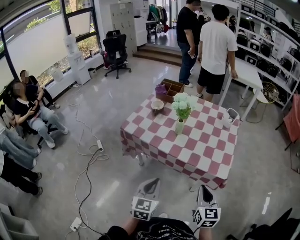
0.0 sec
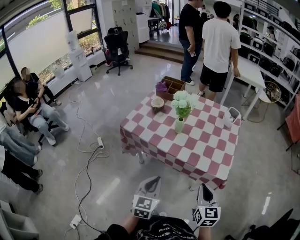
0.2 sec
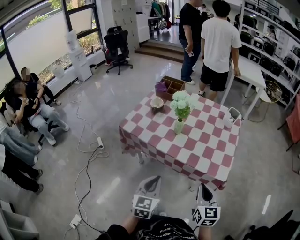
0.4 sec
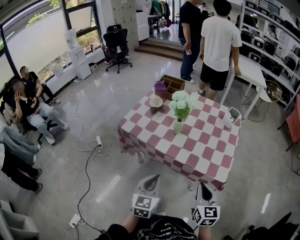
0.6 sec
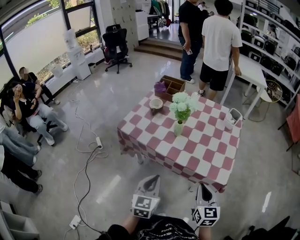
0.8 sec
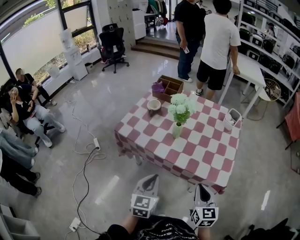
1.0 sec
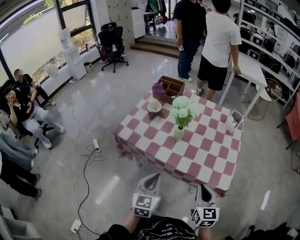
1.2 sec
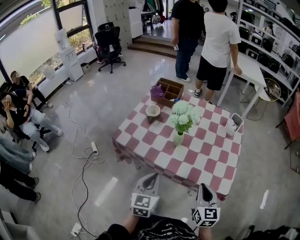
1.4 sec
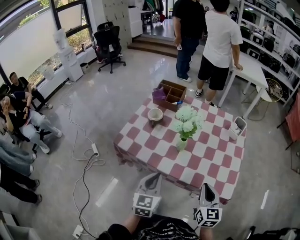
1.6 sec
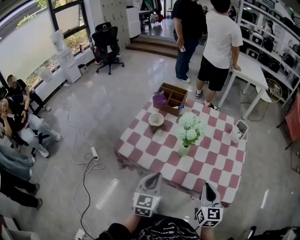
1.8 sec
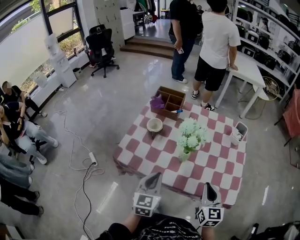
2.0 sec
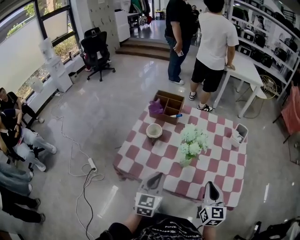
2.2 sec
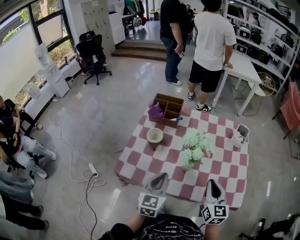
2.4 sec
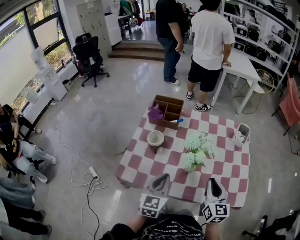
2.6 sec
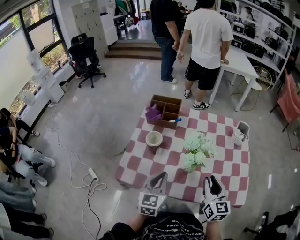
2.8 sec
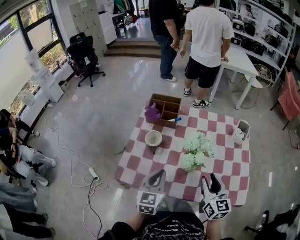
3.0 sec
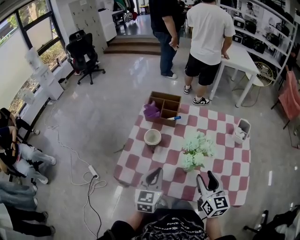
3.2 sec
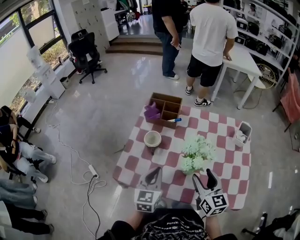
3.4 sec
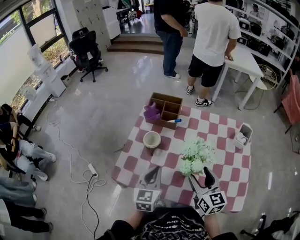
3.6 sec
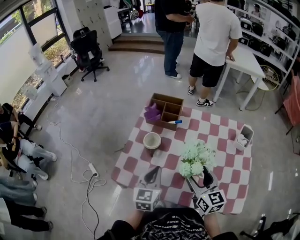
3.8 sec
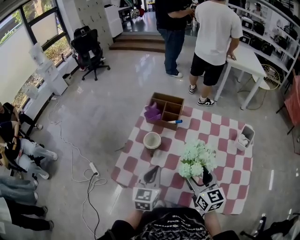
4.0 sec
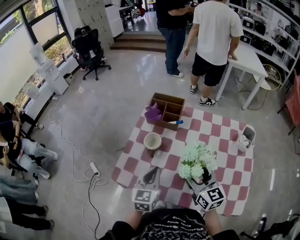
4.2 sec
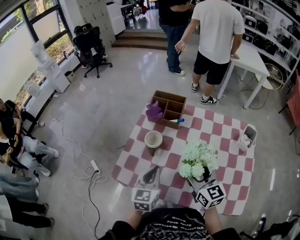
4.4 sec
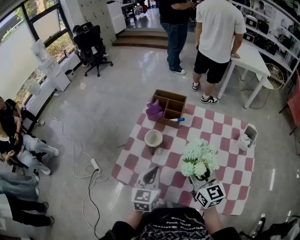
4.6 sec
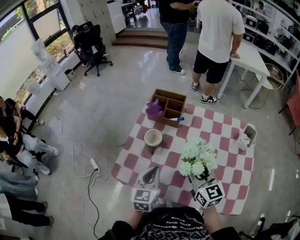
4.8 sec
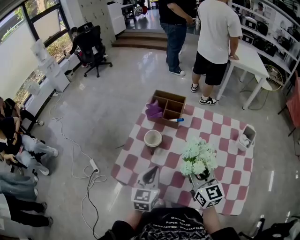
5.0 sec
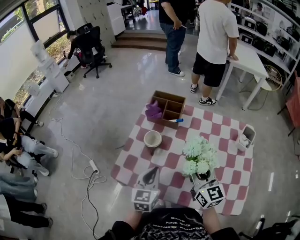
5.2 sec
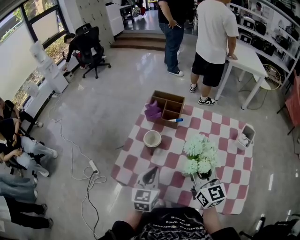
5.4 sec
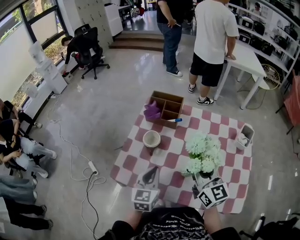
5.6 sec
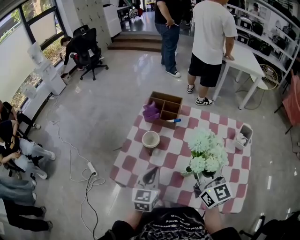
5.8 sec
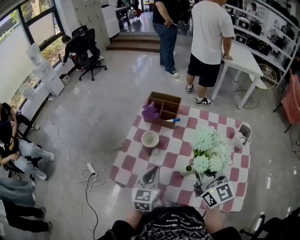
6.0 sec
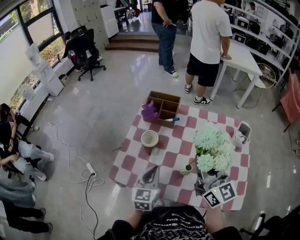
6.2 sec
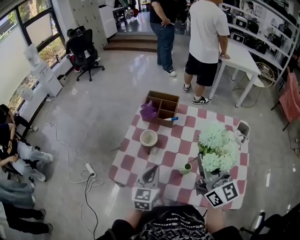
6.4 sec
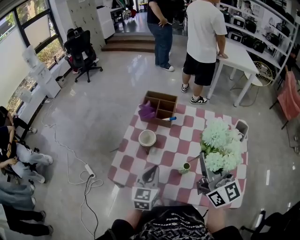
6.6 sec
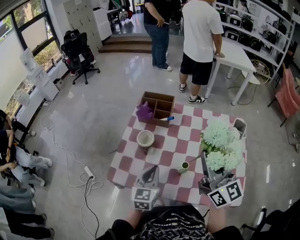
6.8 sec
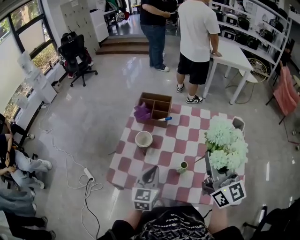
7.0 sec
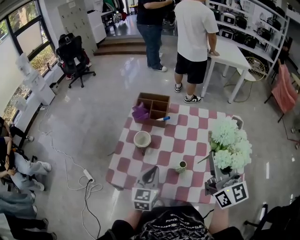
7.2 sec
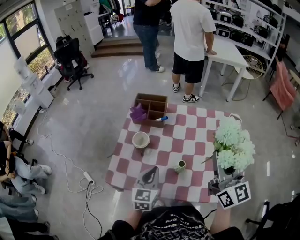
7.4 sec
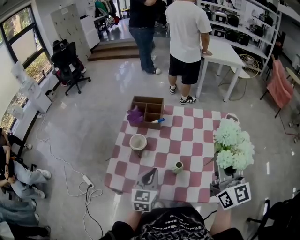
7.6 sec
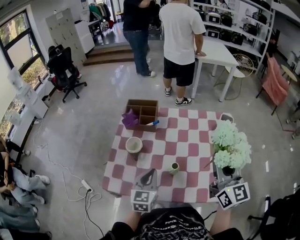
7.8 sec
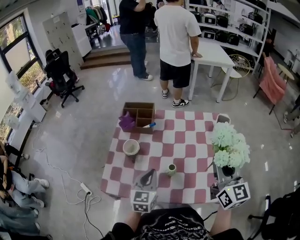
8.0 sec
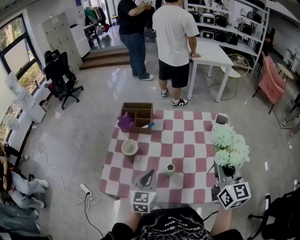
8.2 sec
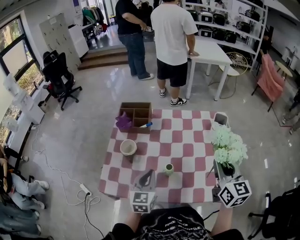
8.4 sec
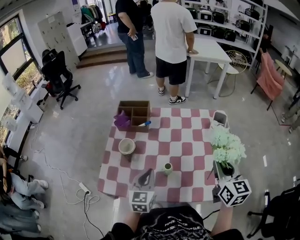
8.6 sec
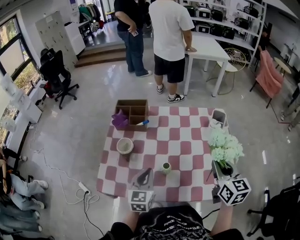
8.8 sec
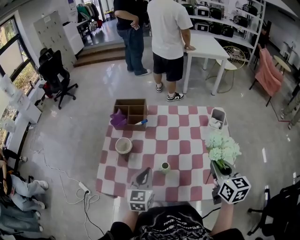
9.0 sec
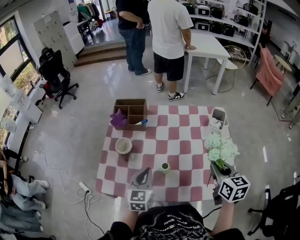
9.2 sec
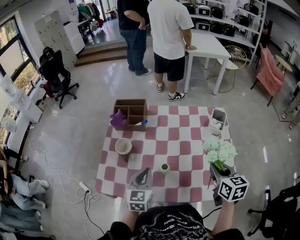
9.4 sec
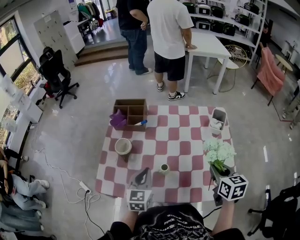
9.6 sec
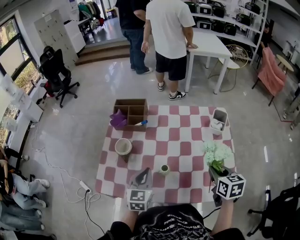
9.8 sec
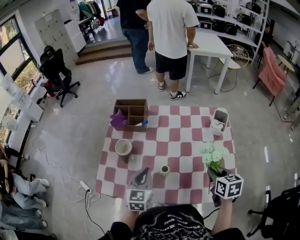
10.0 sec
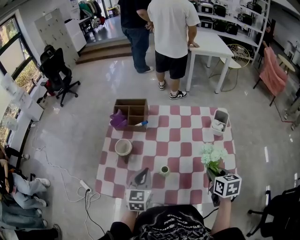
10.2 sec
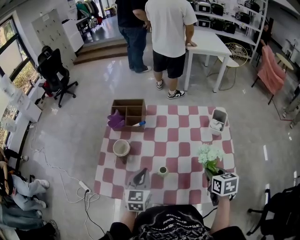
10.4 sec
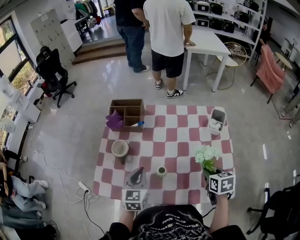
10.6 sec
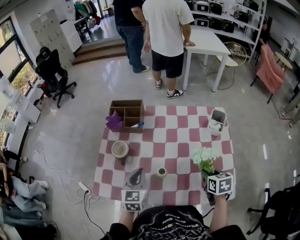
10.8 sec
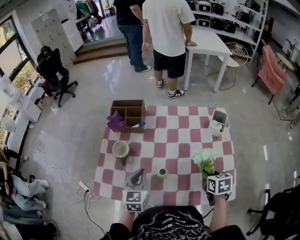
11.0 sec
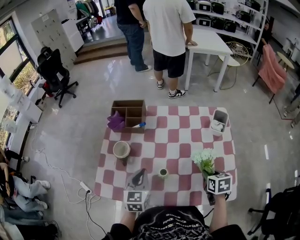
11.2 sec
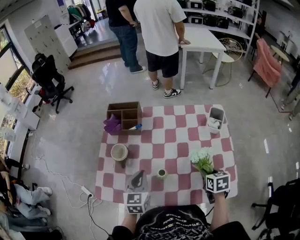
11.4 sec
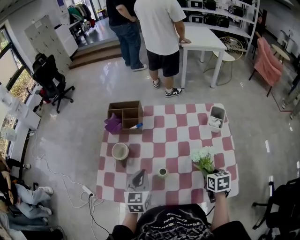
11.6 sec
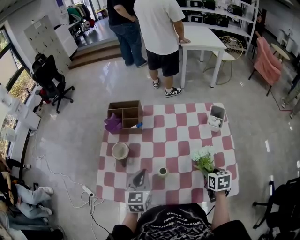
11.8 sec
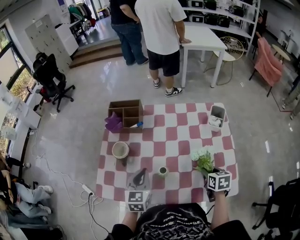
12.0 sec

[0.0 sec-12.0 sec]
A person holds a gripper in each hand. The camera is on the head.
0.0 sec to 1.6 sec: Both grippers move forward, approximately 15 cm.
1.6 sec to 3.0 sec: Both grippers travel together forward and to the left, roughly 15 cm. The right gripper opens up.
3.0 sec to 4.4 sec: The right gripper travels forward and to the left by some 10 cm, turns by about 20 degrees, and opens its fingers.
4.4 sec to 6.0 sec: The right gripper heads upward, covering some 10 cm, and closes up.
6.0 sec to 7.6 sec: The right gripper goes about 10 cm to the right.
7.6 sec to 9.0 sec: The right gripper moves downward and to the right, approximately 15 cm, and rotates roughly 30 degrees.
9.0 sec to 10.4 sec: The right gripper heads downward, covering about 10 cm, and turns by roughly 20 degrees.
10.4 sec to 12.0 sec: The right gripper moves downward, approximately 5 cm.

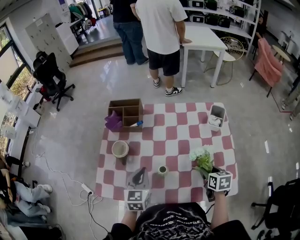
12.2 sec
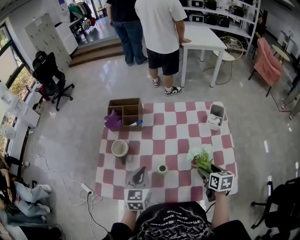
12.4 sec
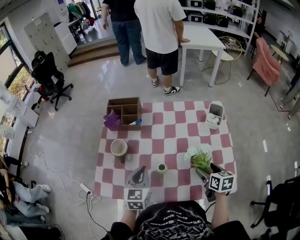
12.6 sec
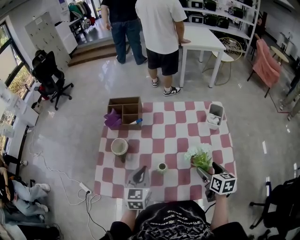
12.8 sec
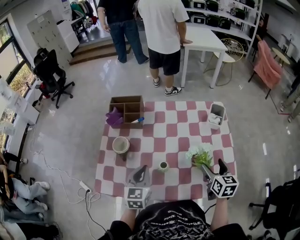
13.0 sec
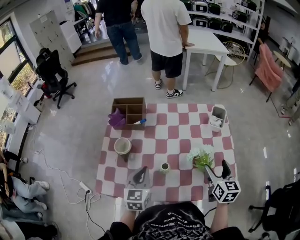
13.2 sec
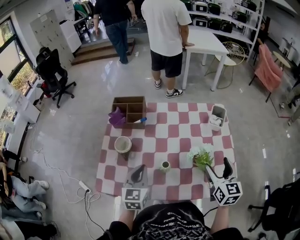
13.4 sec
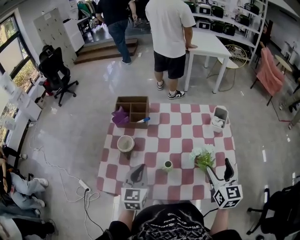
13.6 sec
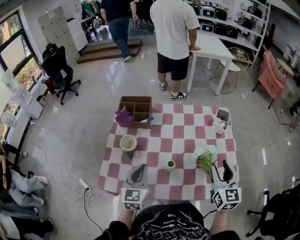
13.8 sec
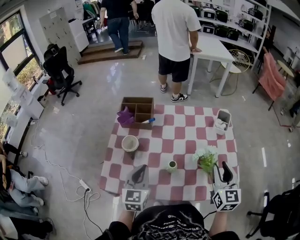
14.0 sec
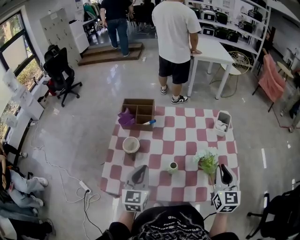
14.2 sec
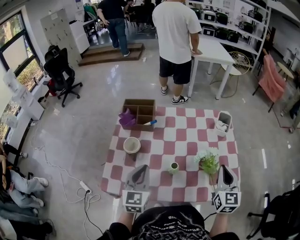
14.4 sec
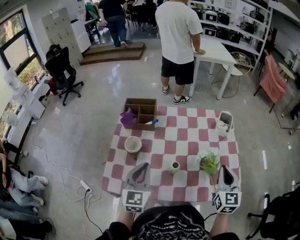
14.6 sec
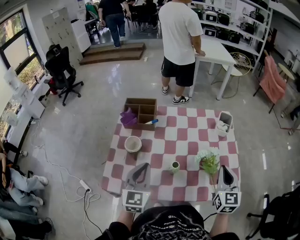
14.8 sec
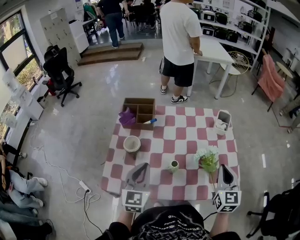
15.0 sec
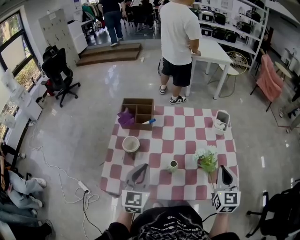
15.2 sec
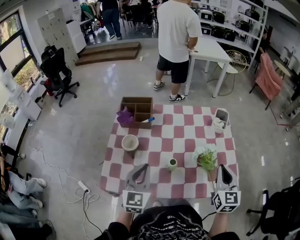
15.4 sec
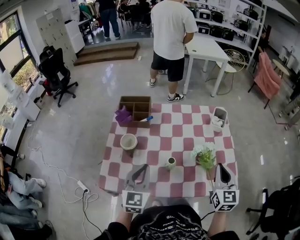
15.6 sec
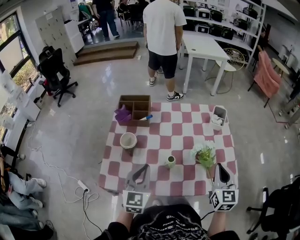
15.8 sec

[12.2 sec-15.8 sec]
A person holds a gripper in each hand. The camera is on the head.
12.2 sec to 14.0 sec: The left gripper ends up some 5 cm from where it was; the right gripper is displaced upward by some 15 cm, angles its fingers upward, by approximately 30 degrees, and opens and closes again.
14.0 sec to 15.8 sec: The right gripper closes.

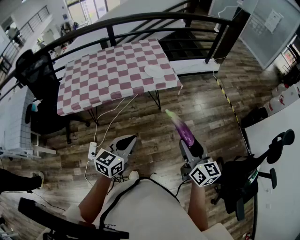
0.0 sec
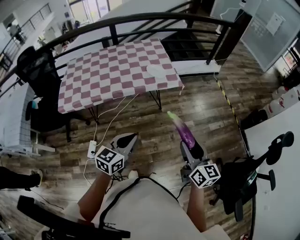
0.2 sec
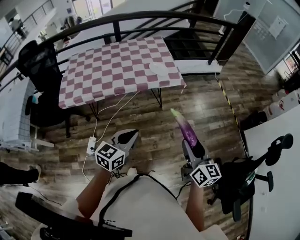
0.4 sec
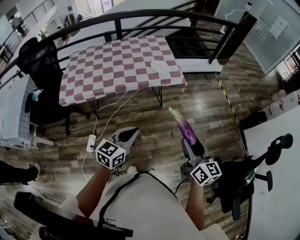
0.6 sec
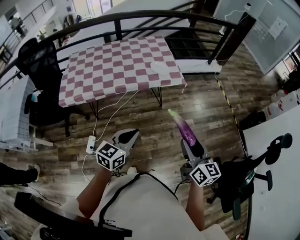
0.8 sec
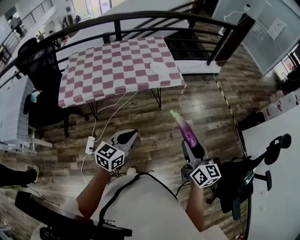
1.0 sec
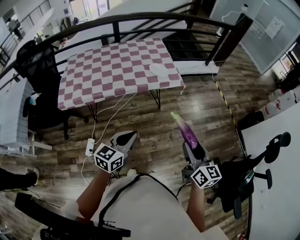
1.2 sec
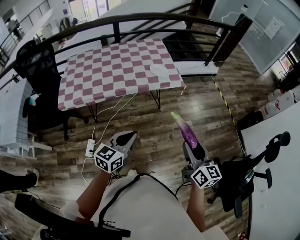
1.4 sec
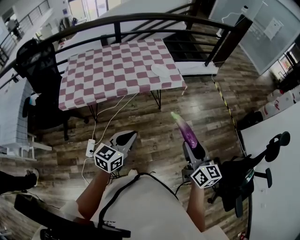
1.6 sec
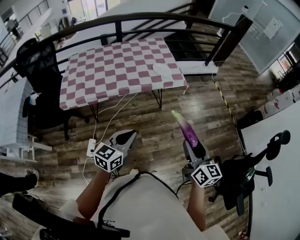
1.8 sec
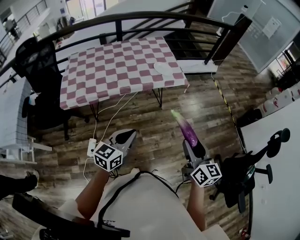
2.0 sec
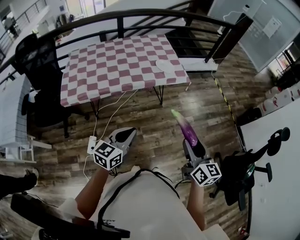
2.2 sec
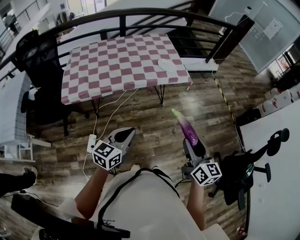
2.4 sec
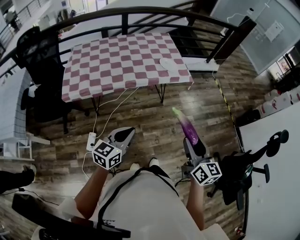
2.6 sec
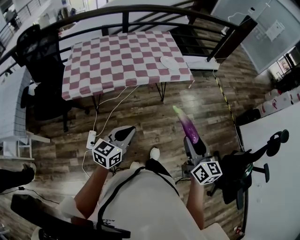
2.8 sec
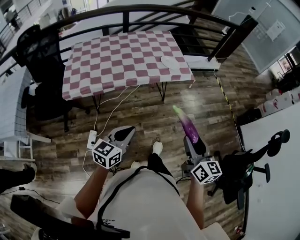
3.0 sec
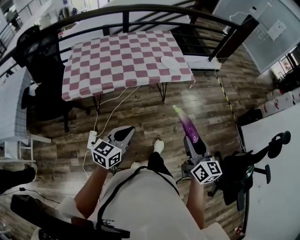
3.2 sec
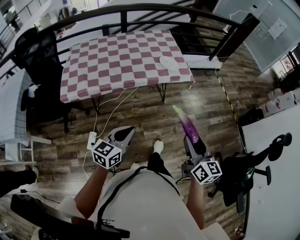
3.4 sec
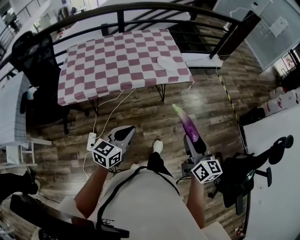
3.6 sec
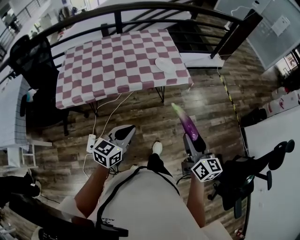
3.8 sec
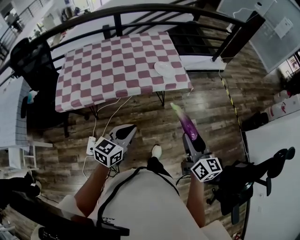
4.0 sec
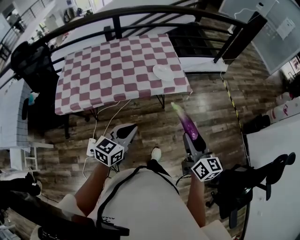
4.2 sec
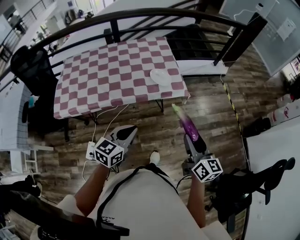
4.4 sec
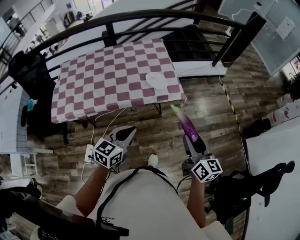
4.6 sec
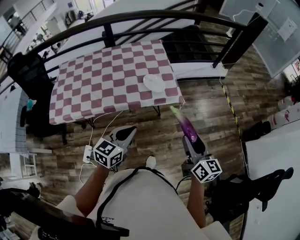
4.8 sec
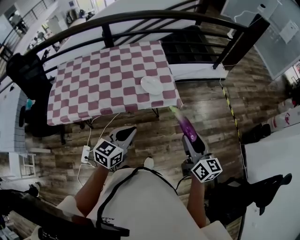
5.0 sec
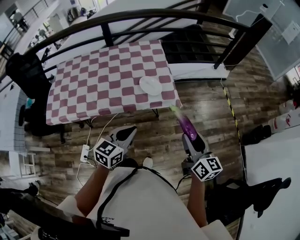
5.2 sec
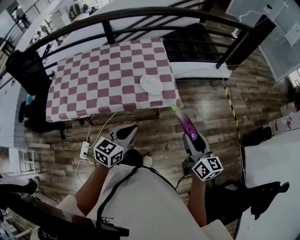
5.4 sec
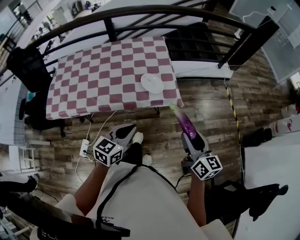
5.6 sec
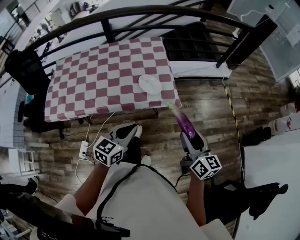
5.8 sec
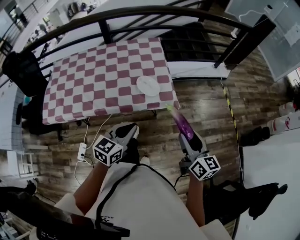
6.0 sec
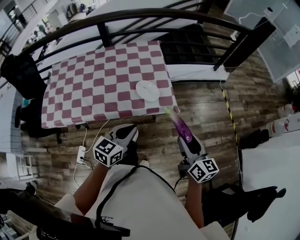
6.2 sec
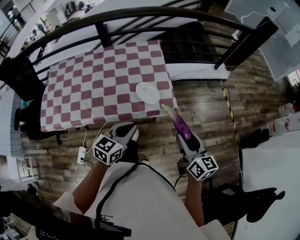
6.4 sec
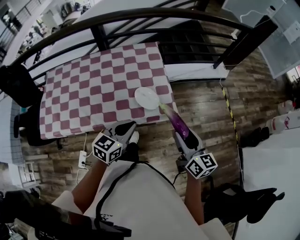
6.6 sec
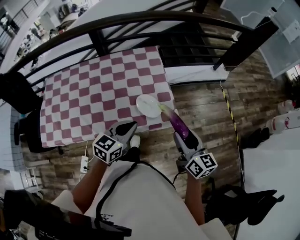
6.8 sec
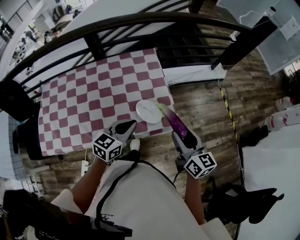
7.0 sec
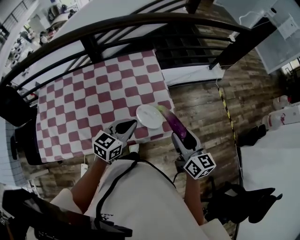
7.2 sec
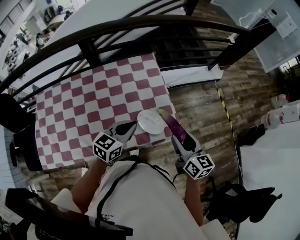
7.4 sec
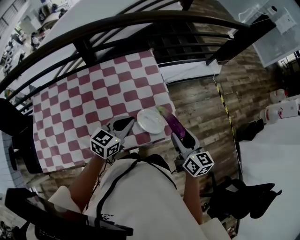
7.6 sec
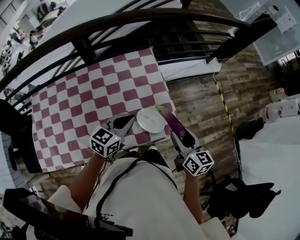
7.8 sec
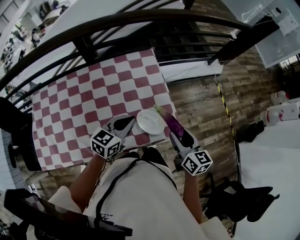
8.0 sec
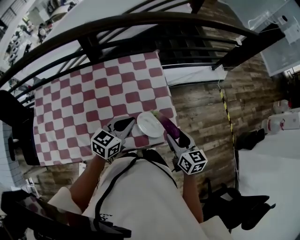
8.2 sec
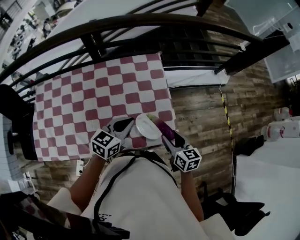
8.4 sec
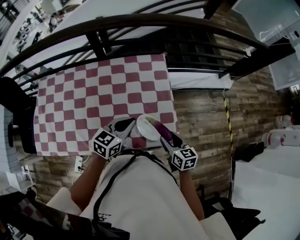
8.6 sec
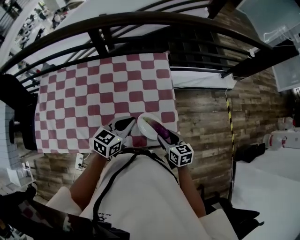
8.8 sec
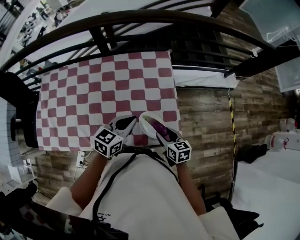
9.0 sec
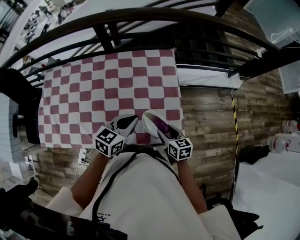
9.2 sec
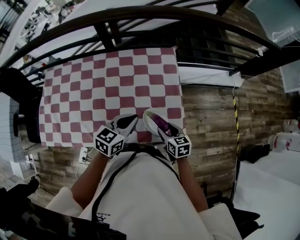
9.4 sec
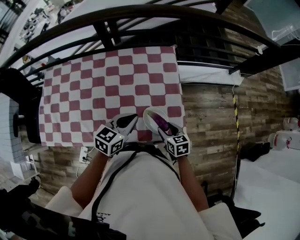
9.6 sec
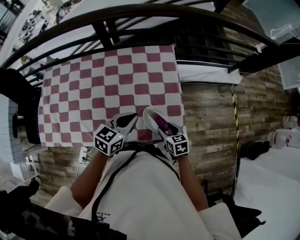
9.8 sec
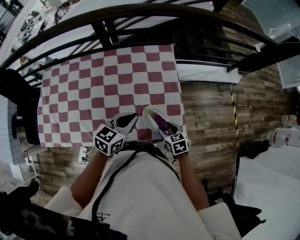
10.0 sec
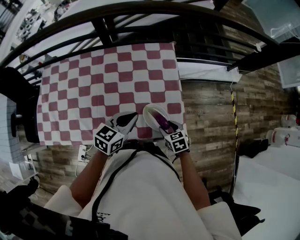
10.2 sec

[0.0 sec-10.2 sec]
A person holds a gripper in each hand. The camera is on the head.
0.0 sec to 1.4 sec: The left gripper moves to the left, about 5 cm.
1.4 sec to 3.0 sec: The grippers both shift to the left by about 10 cm.
3.0 sec to 4.4 sec: Both grippers move forward and to the right, some 25 cm.
4.4 sec to 5.8 sec: The grippers both shift forward and to the right by roughly 15 cm.
5.8 sec to 7.2 sec: The right gripper moves forward and to the left, some 25 cm. The left gripper travels forward by about 25 cm.
7.2 sec to 8.8 sec: The left gripper moves forward, about 10 cm, while the right gripper moves downward and forward, some 20 cm, and rotates roughly 30 degrees.
8.8 sec to 10.2 sec: The right gripper shifts approximately 5 cm downward, and changes its angle by approximately 20 degrees.
